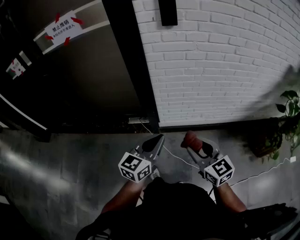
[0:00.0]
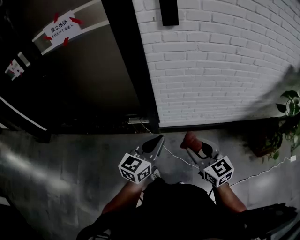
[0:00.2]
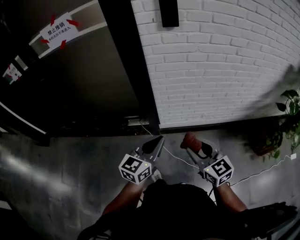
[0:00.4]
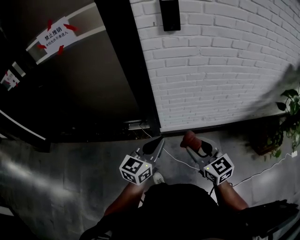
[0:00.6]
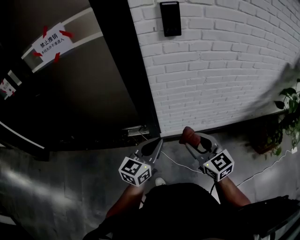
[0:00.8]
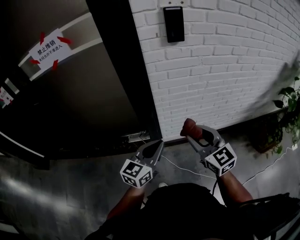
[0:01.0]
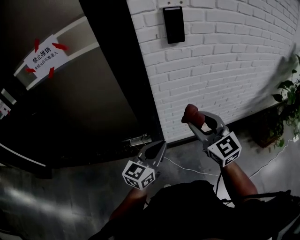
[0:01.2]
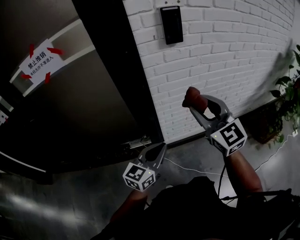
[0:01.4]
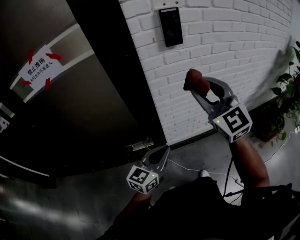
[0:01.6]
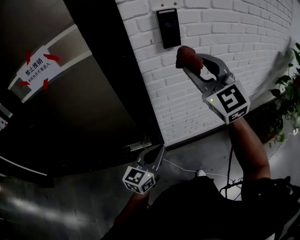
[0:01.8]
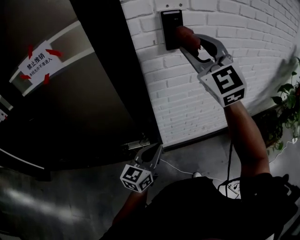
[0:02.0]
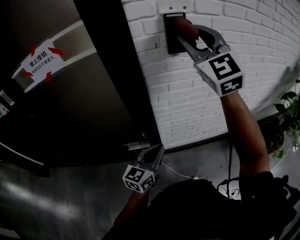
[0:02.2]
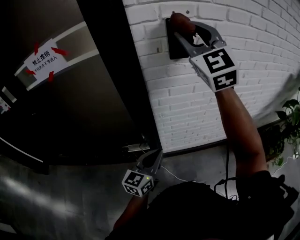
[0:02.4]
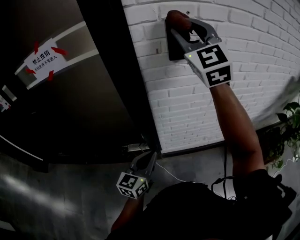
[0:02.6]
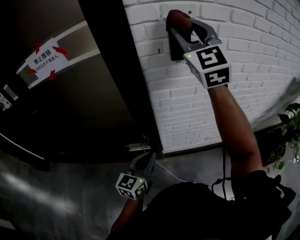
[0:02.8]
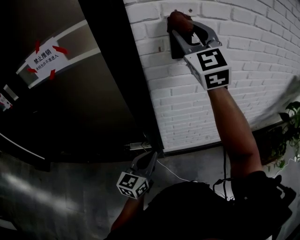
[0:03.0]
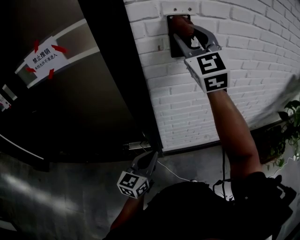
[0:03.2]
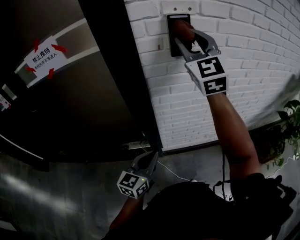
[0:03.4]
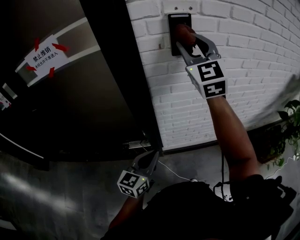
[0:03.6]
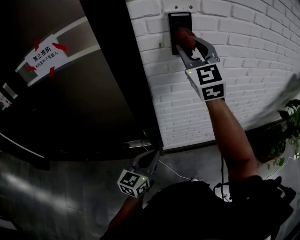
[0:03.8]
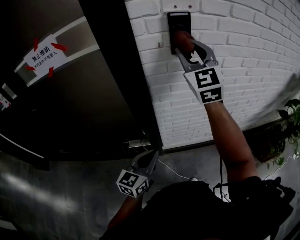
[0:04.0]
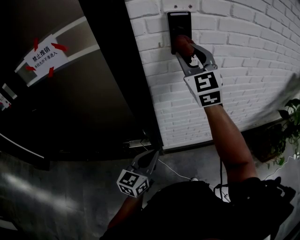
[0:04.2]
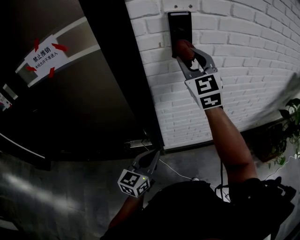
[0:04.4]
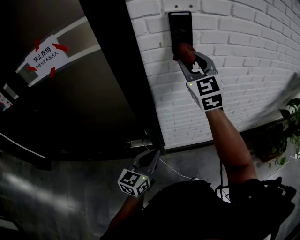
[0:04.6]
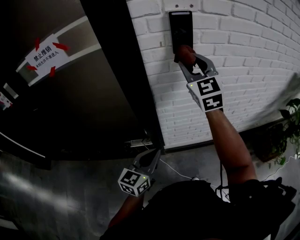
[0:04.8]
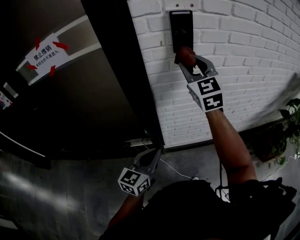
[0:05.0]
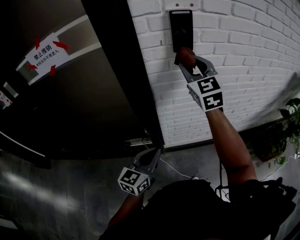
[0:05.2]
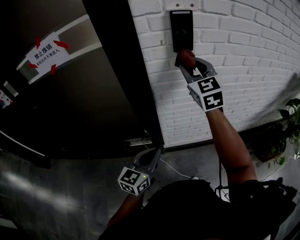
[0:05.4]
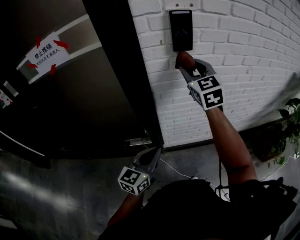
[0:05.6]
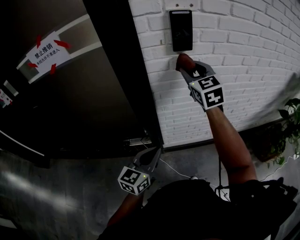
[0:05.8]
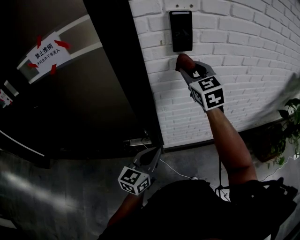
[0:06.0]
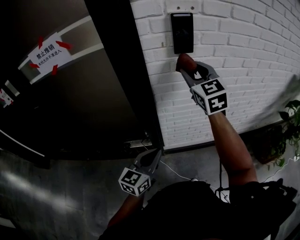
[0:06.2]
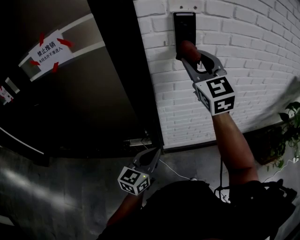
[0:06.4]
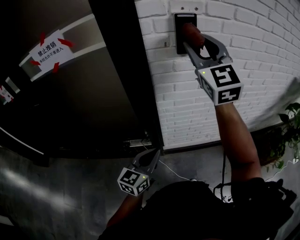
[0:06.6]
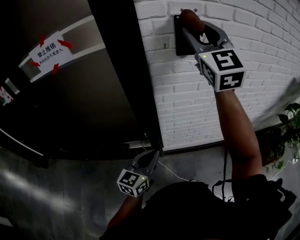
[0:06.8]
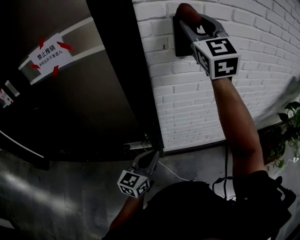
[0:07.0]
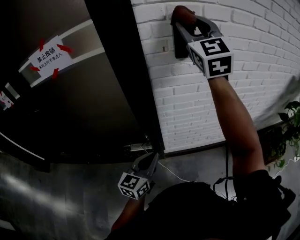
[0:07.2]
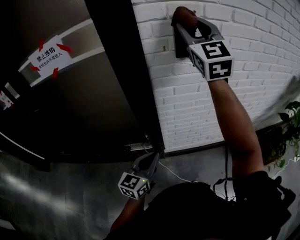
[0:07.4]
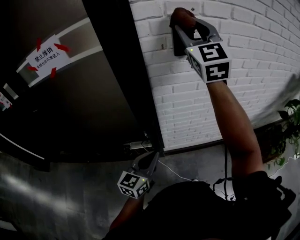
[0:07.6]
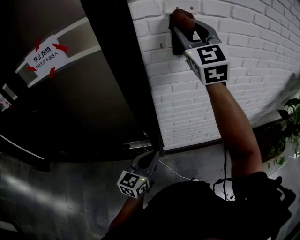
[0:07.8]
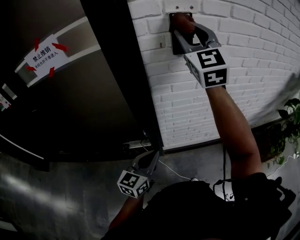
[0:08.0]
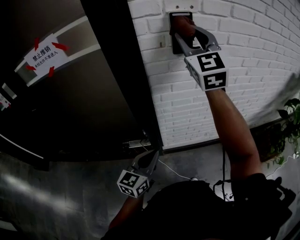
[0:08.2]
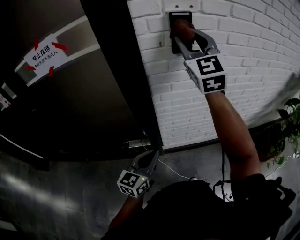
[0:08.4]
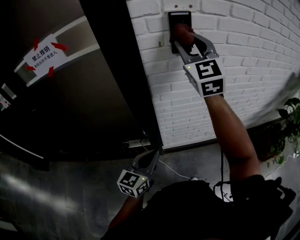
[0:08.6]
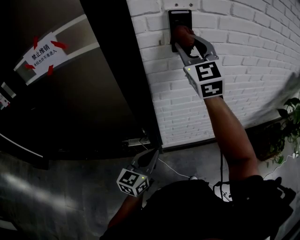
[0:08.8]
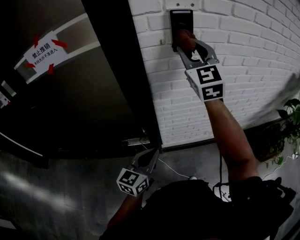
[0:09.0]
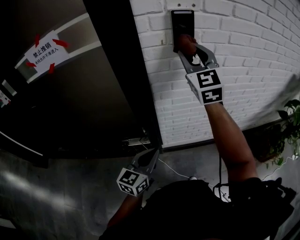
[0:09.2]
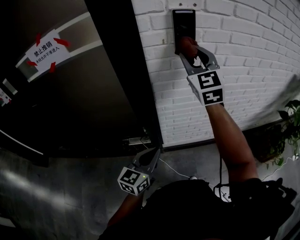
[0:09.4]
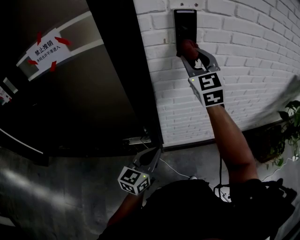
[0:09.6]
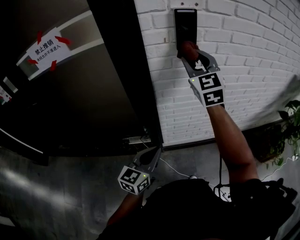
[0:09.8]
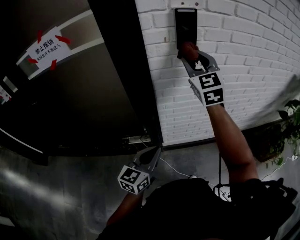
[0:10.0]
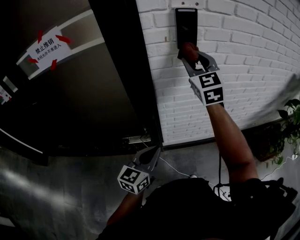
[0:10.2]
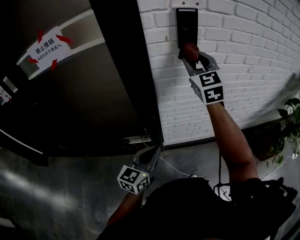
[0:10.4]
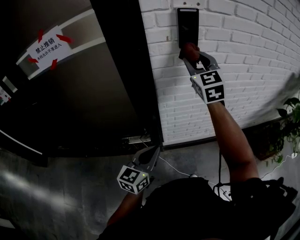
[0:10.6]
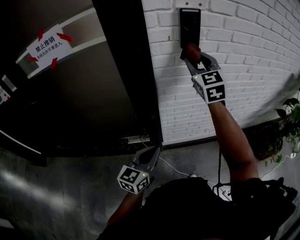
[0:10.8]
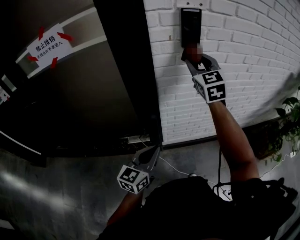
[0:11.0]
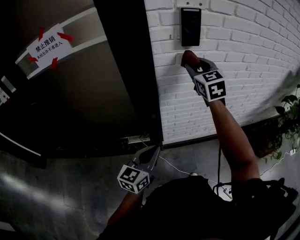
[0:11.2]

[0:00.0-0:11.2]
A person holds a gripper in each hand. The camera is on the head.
0:00.0 to 0:01.6: The right gripper heads forward and upward, covering about 35 cm, and turns by approximately 40 degrees, while the left gripper moves forward and to the left, approximately 15 cm.
0:01.6 to 0:03.2: The right gripper moves forward and upward, about 20 cm.
0:03.2 to 0:04.8: The right gripper moves downward, roughly 10 cm.
0:04.8 to 0:06.4: The right gripper moves approximately 5 cm.
0:06.4 to 0:08.0: The right gripper heads upward, covering about 10 cm.
0:08.0 to 0:09.6: The right gripper goes some 10 cm downward.
0:09.6 to 0:11.2: The right gripper heads downward, covering about 5 cm.

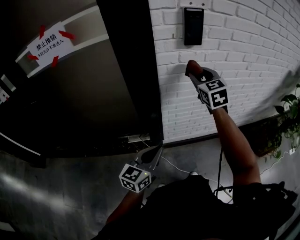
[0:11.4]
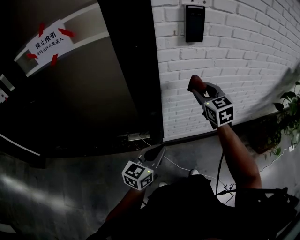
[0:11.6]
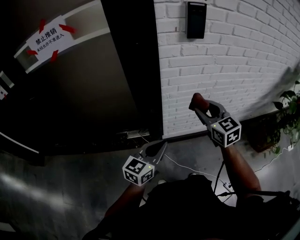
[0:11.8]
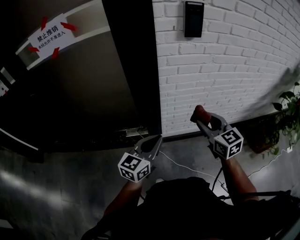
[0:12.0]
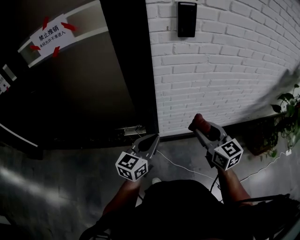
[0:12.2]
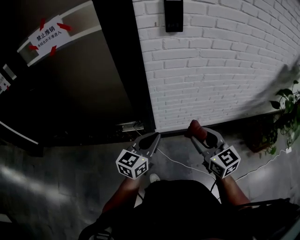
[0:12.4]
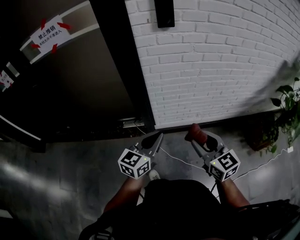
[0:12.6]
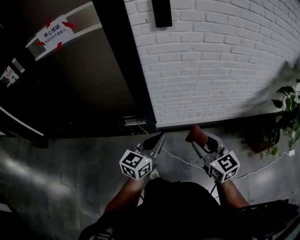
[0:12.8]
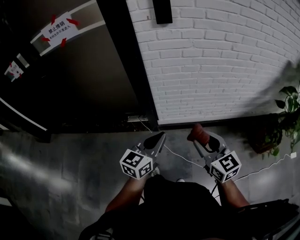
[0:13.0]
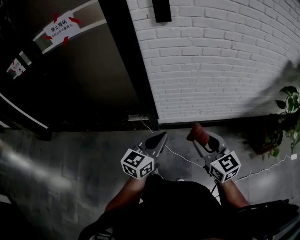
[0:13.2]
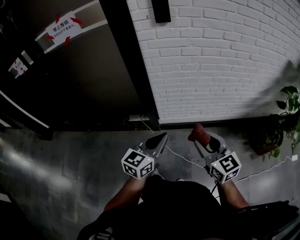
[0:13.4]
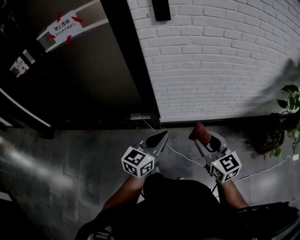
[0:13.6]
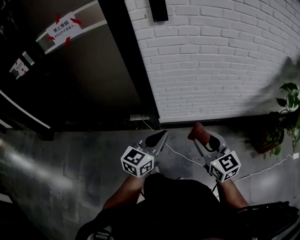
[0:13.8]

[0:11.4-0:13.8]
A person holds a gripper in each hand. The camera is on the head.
0:11.4 to 0:12.6: The left gripper heads to the right and backward, covering approximately 15 cm. The right gripper shifts about 35 cm backward, and changes its angle by approximately 30 degrees.
0:12.6 to 0:13.8: The two grippers go approximately 10 cm backward and to the right.

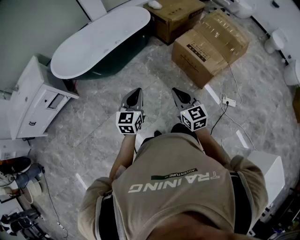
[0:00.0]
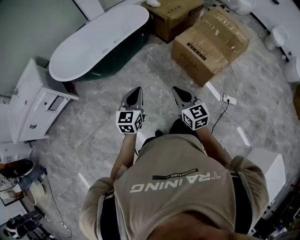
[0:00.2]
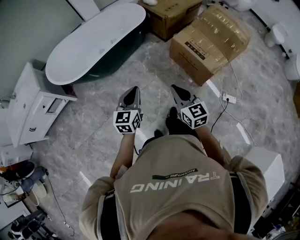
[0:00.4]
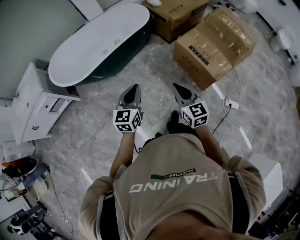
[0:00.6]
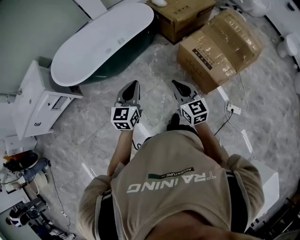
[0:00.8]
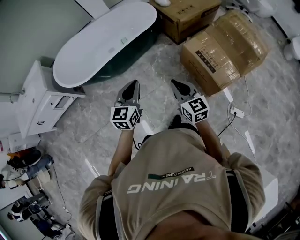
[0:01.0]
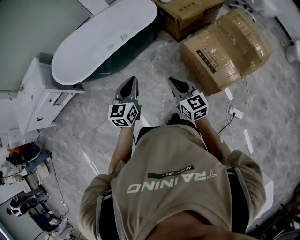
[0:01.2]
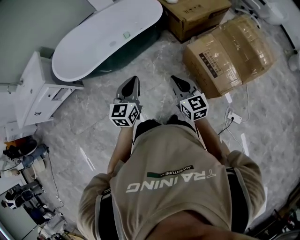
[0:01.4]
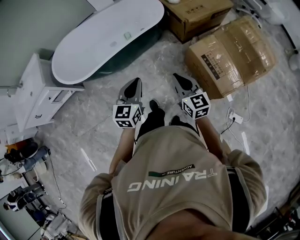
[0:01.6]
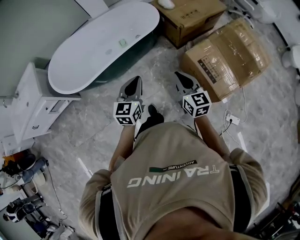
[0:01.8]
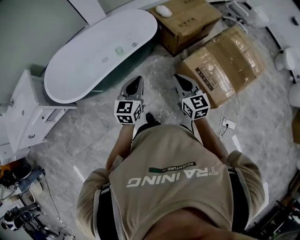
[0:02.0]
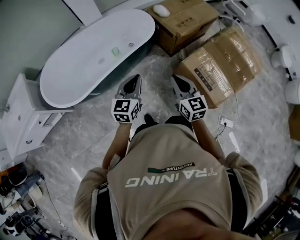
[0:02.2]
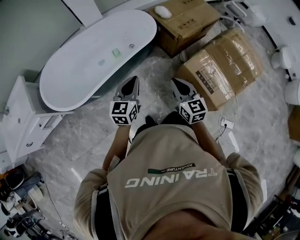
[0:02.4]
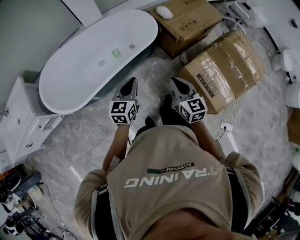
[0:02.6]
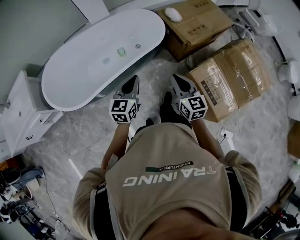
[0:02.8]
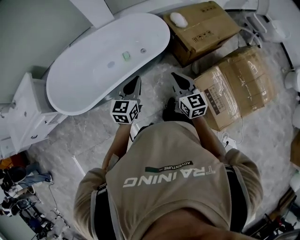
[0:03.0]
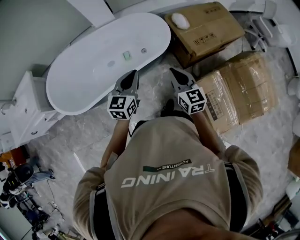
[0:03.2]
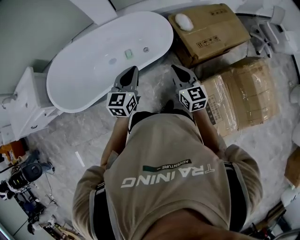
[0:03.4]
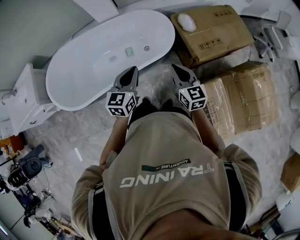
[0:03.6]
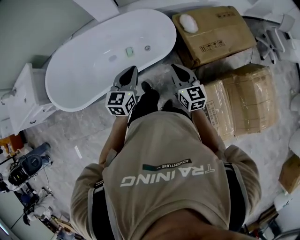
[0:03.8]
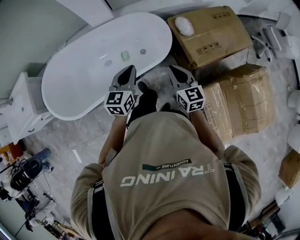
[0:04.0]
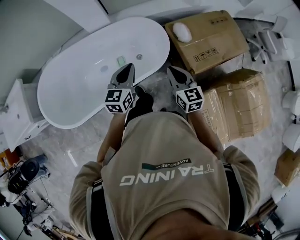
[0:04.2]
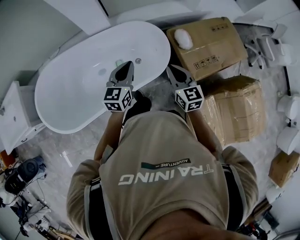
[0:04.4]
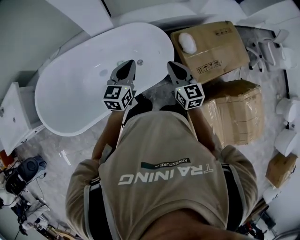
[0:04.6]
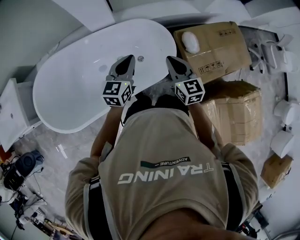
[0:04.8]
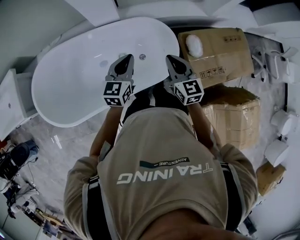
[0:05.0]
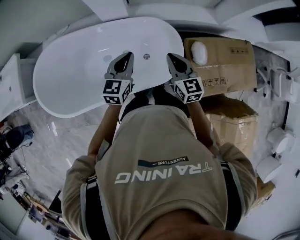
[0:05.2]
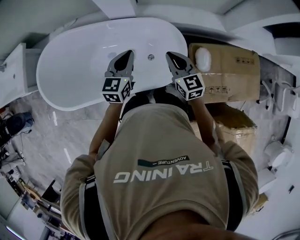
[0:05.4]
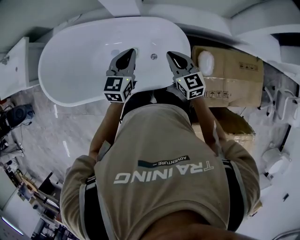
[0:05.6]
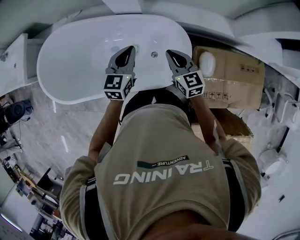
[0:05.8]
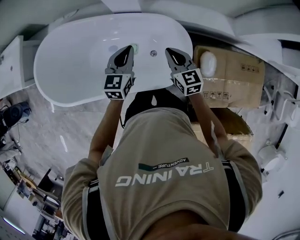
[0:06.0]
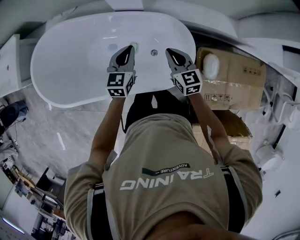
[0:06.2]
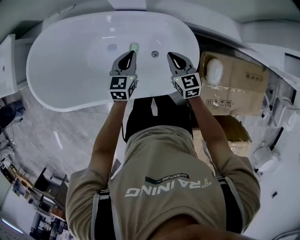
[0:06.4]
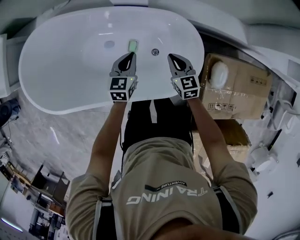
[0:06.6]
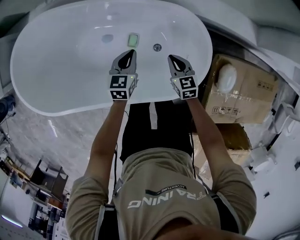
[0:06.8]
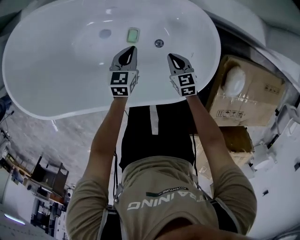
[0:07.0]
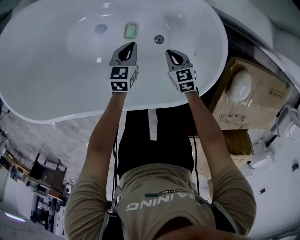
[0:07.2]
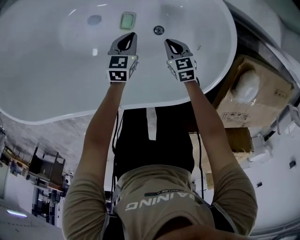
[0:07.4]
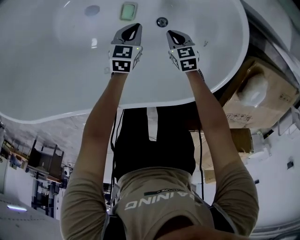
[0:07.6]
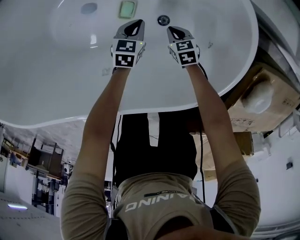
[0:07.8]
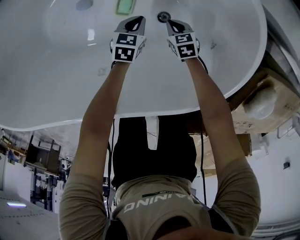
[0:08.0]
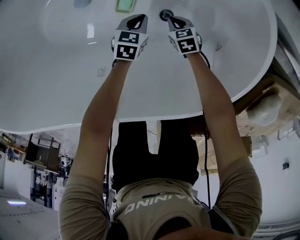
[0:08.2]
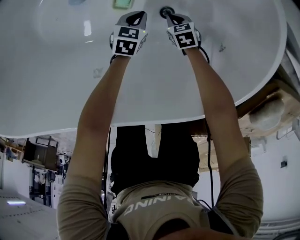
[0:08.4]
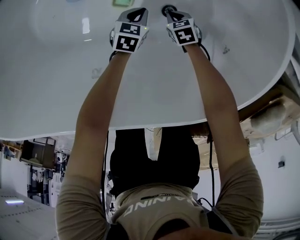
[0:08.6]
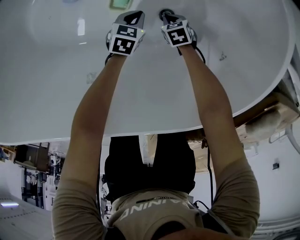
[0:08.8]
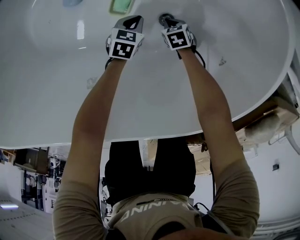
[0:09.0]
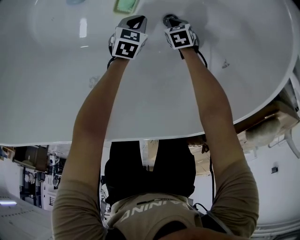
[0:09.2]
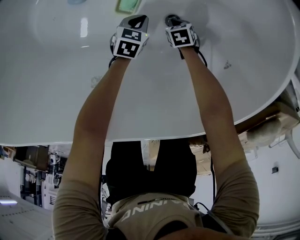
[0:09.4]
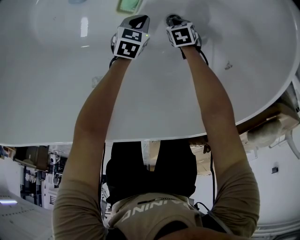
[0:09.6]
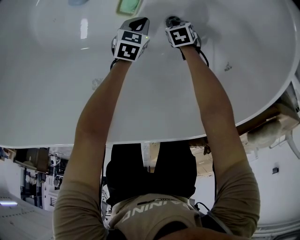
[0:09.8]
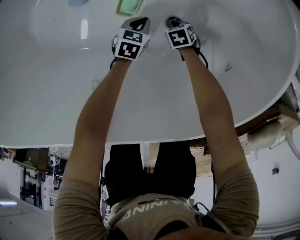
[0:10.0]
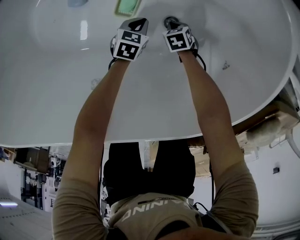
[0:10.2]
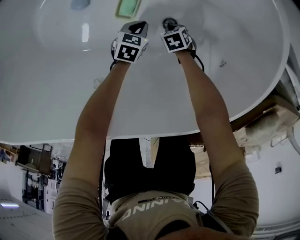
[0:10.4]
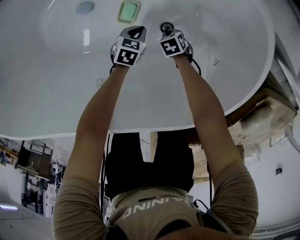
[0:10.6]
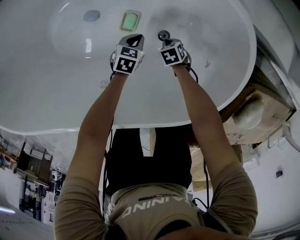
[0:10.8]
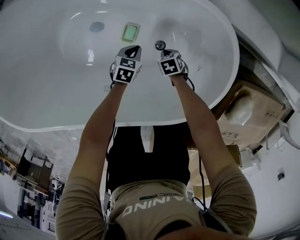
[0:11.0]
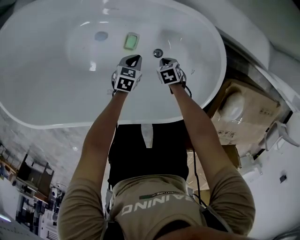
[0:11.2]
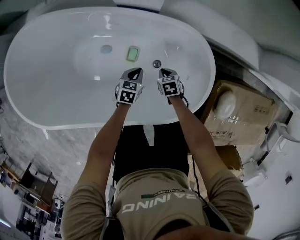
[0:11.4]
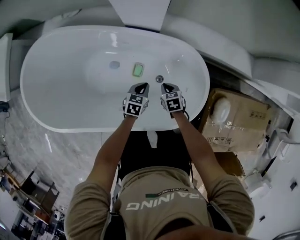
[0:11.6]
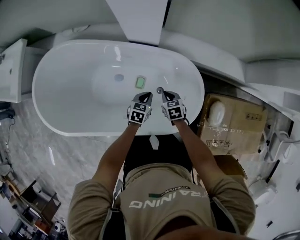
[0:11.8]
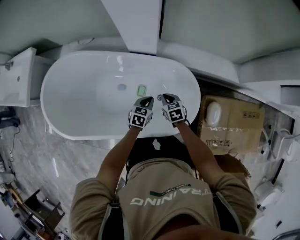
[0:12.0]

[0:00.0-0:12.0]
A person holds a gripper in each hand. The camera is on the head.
0:00.0 to 0:01.6: The grippers both shift forward by some 30 cm.
0:01.6 to 0:03.0: Both grippers travel together forward, some 30 cm.
0:03.0 to 0:04.4: The two grippers go about 30 cm forward.
0:04.4 to 0:06.0: The right gripper shifts by some 25 cm, and swivels approximately 30 degrees, while the left gripper shifts by approximately 20 cm, and changes its angle by some 20 degrees.
0:06.0 to 0:07.6: The grippers both shift downward by approximately 50 cm. The right gripper tilts its fingers about 30 degrees downward. The left gripper changes its angle by roughly 30 degrees.
0:07.6 to 0:09.0: Both grippers travel together downward, roughly 20 cm. The right gripper rotates about 20 degrees.
0:09.0 to 0:10.4: There are only small adjustments of the grippers.
0:10.4 to 0:12.0: Both grippers move upward, approximately 60 cm. The right gripper changes its angle by approximately 40 degrees.
